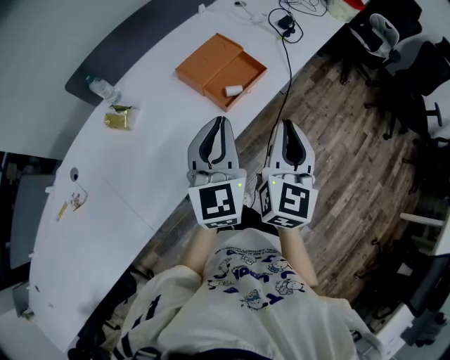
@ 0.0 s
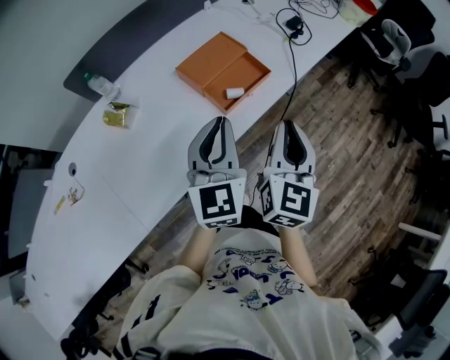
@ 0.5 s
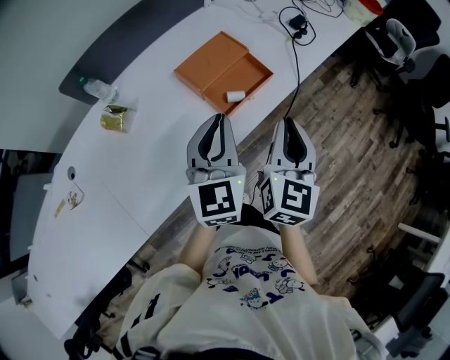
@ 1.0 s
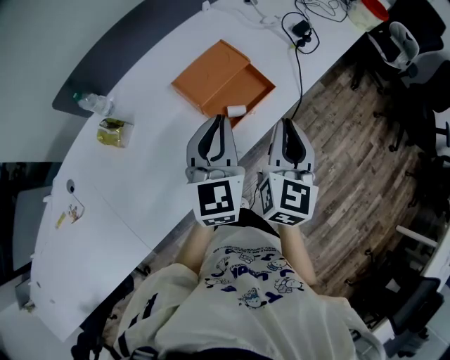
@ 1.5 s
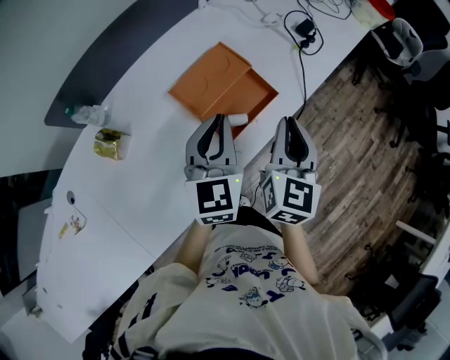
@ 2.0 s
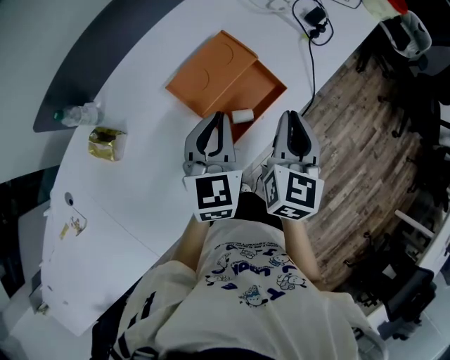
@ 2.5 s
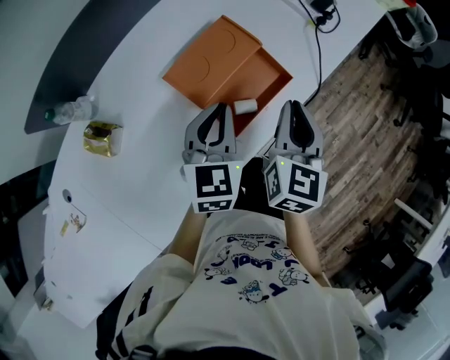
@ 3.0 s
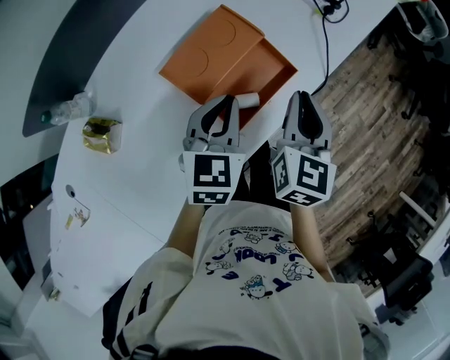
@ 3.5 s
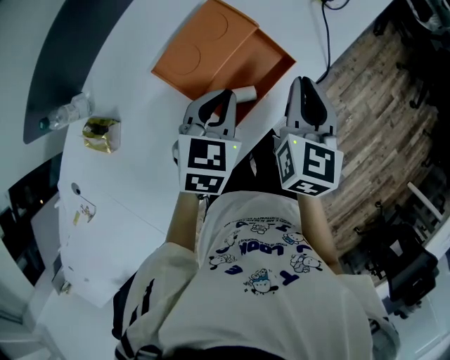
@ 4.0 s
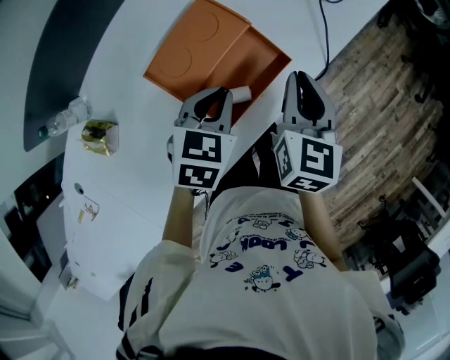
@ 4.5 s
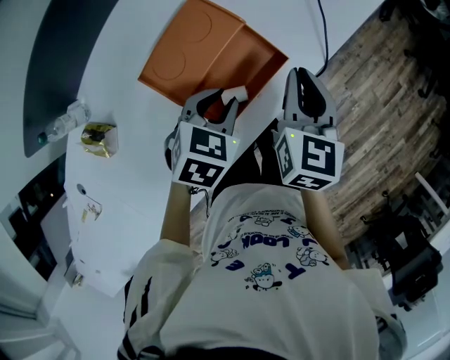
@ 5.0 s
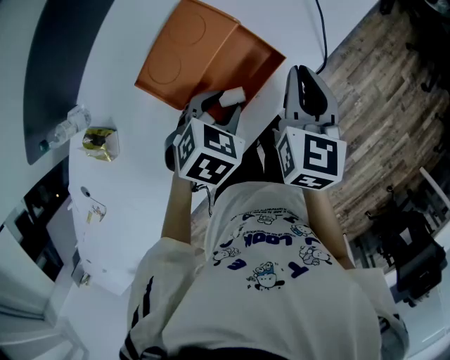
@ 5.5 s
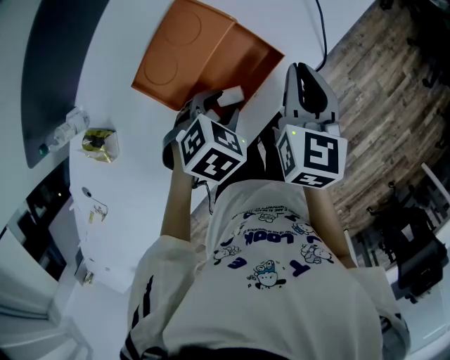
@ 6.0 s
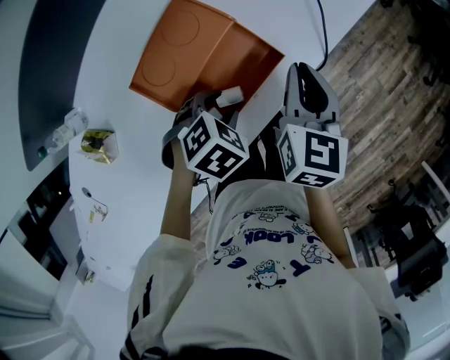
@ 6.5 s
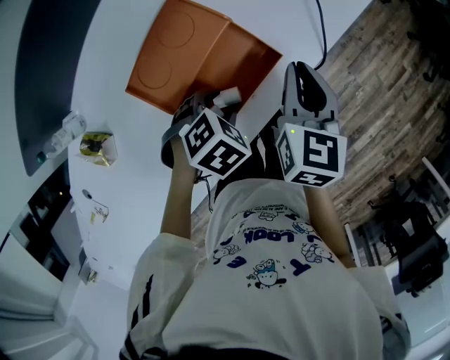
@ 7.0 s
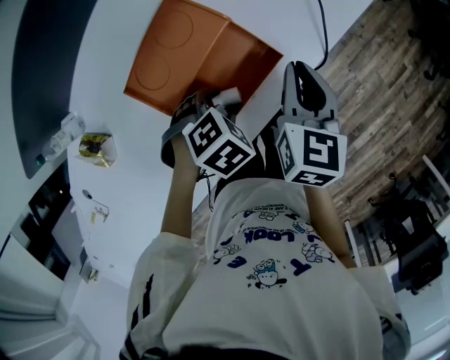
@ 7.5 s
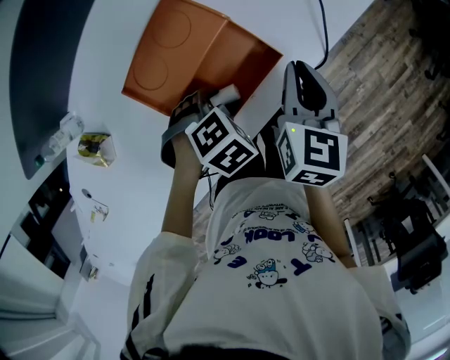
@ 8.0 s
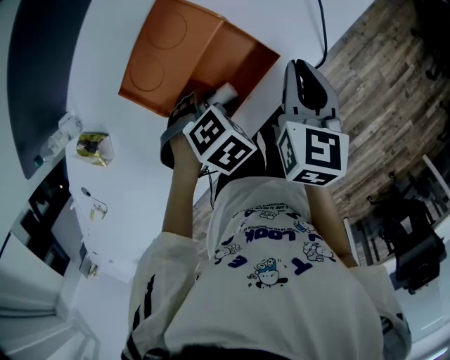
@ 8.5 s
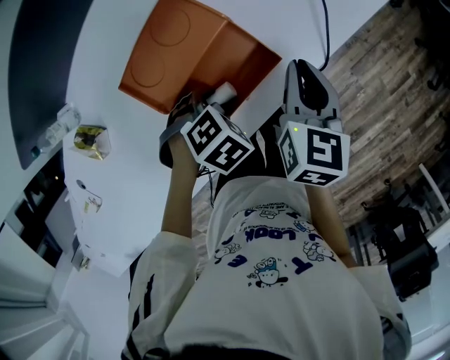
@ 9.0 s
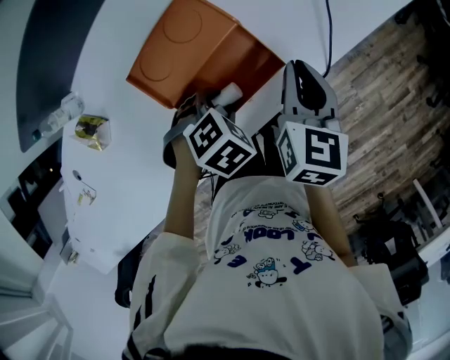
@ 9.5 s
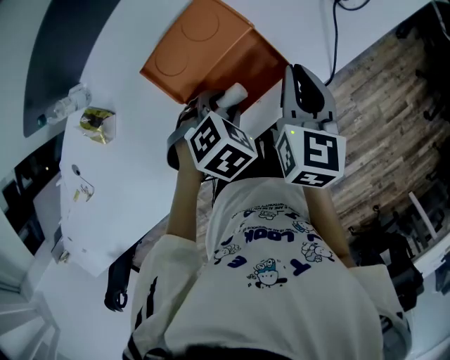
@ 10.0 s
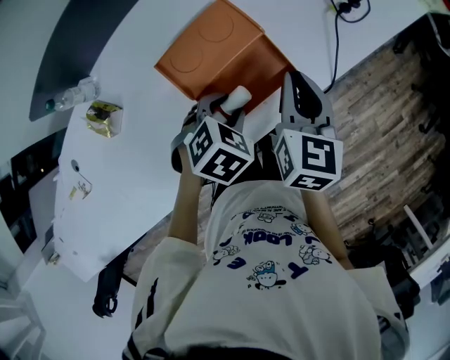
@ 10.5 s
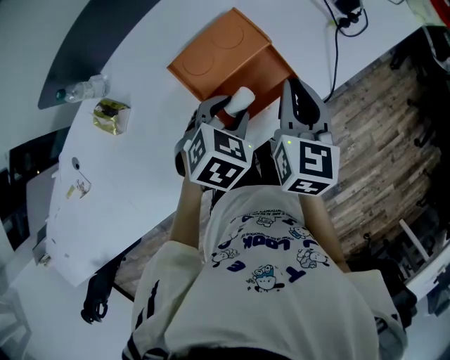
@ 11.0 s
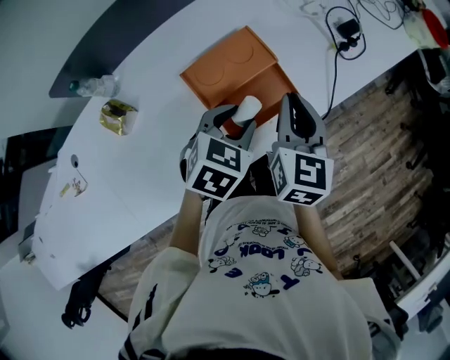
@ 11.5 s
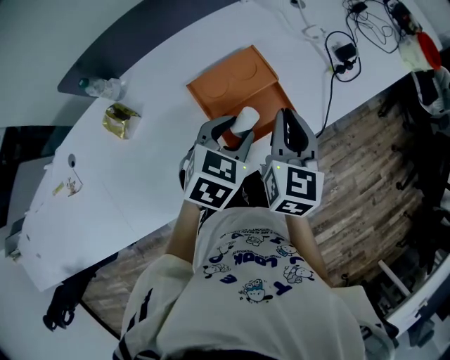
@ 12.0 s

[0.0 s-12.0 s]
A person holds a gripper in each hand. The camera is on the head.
0.0 to 2.0 s: The grippers both shift forward by roughly 20 cm.
2.0 to 4.0 s: Both grippers travel together downward and forward, about 15 cm. The left gripper swivels roughly 30 degrees.
4.0 to 6.0 s: The right gripper moves some 5 cm. Meanwhile the left gripper goes about 10 cm downward, turns by roughly 40 degrees, and opens its fingers.
6.0 to 10.0 s: The grippers stay close to where they were, moving slightly.
10.0 to 12.0 s: The grippers both shift upward by some 15 cm. The left gripper angles its fingers upward, by approximately 30 degrees.

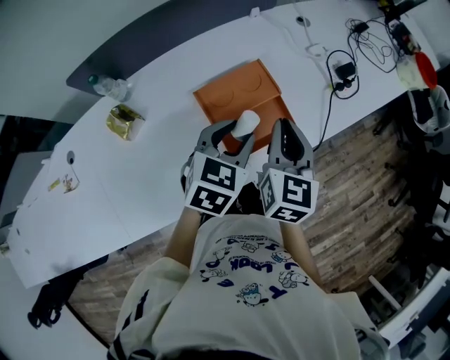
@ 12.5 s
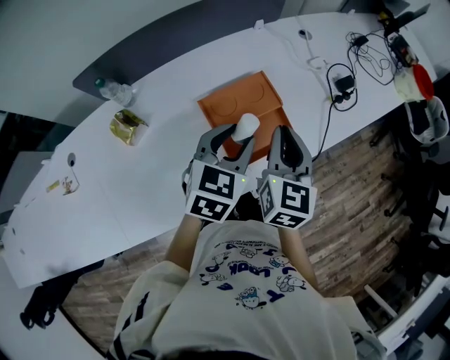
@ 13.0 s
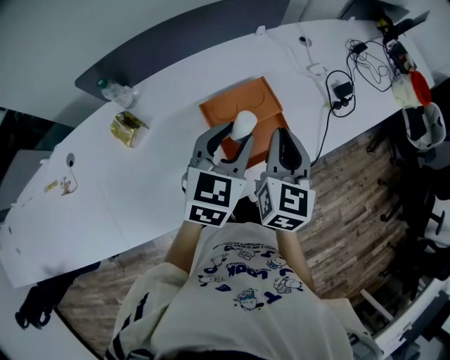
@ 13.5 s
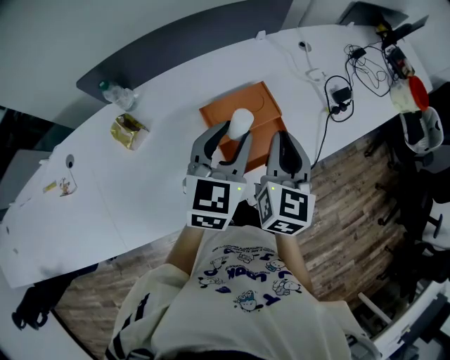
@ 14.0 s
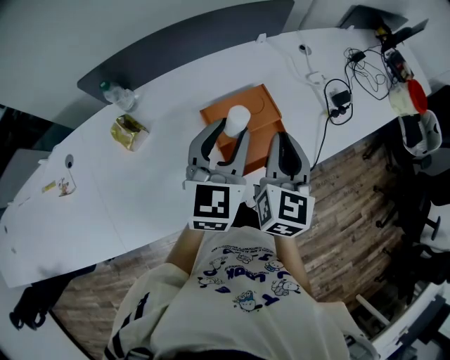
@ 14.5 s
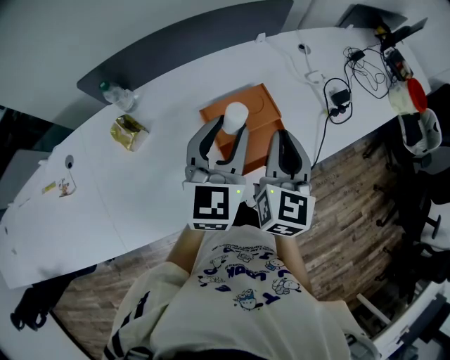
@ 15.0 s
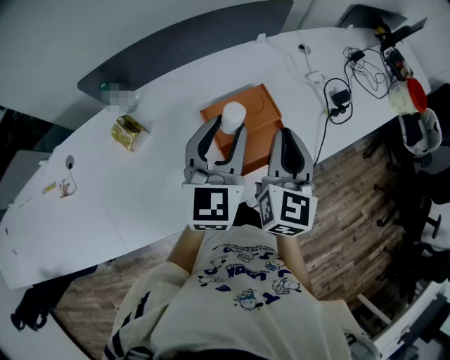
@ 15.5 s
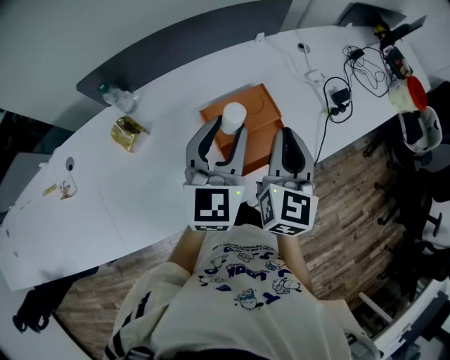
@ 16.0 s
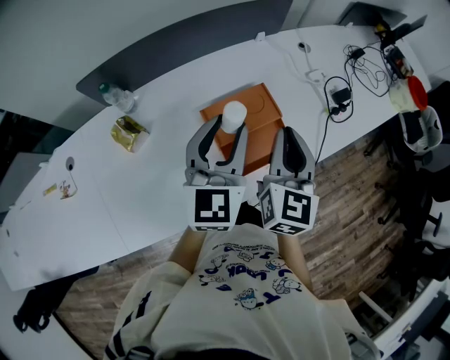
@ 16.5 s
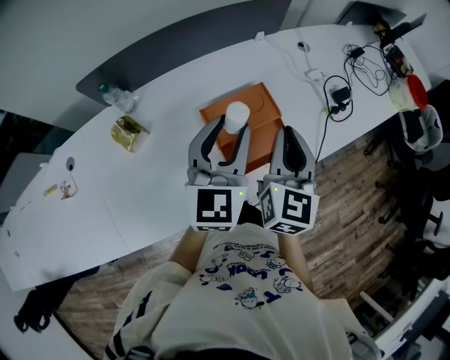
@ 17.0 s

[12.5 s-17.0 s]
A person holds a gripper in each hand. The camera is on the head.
12.5 to 14.5 s: The right gripper shifts by roughly 5 cm; the left gripper moves upward and to the left, roughly 10 cm, and rotates about 30 degrees.
14.5 to 17.0 s: The grippers make only small movements.

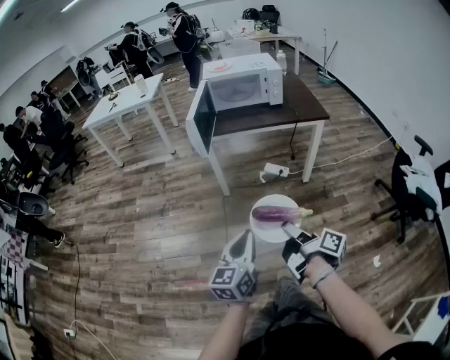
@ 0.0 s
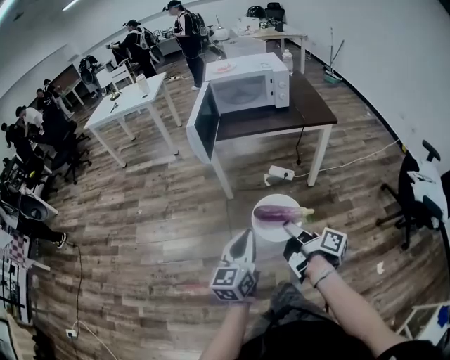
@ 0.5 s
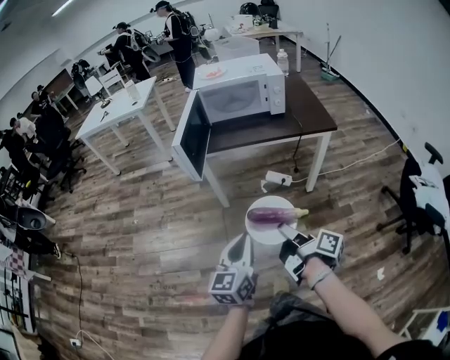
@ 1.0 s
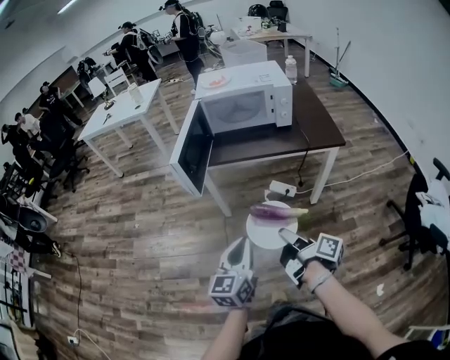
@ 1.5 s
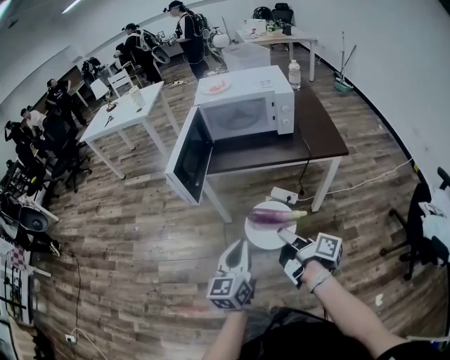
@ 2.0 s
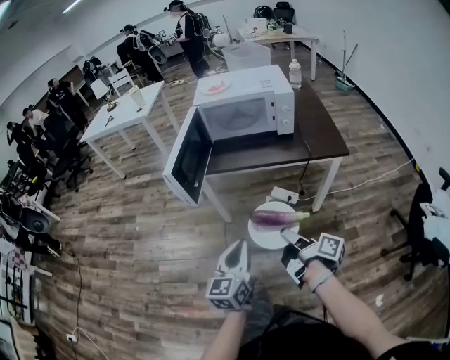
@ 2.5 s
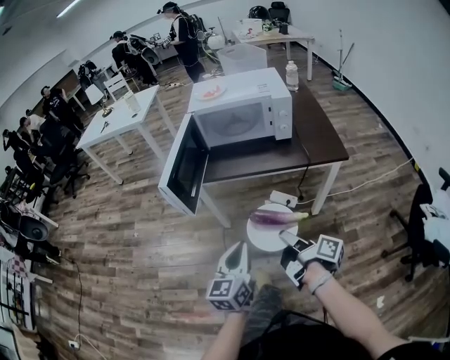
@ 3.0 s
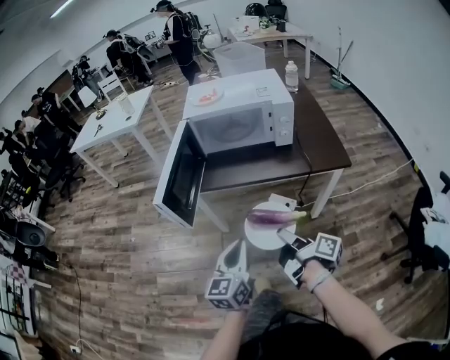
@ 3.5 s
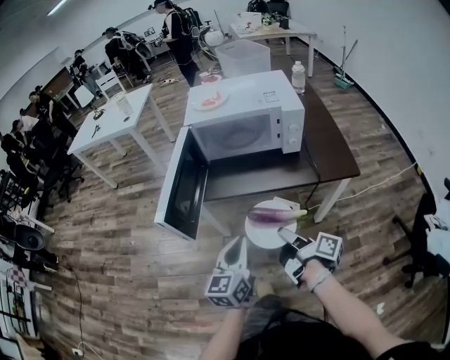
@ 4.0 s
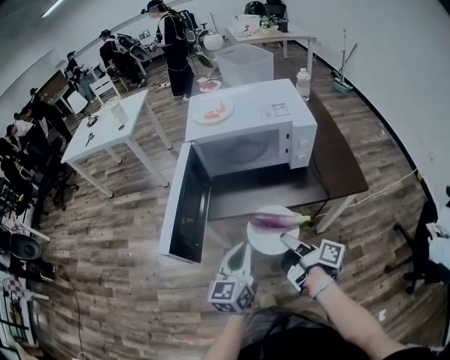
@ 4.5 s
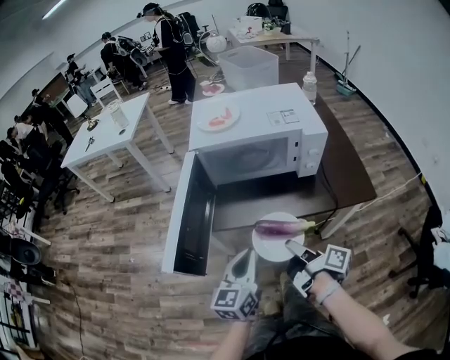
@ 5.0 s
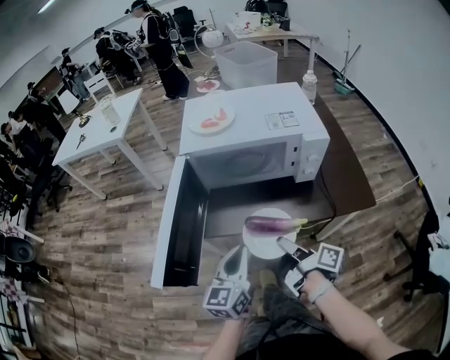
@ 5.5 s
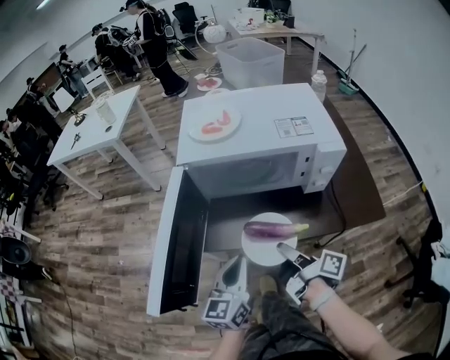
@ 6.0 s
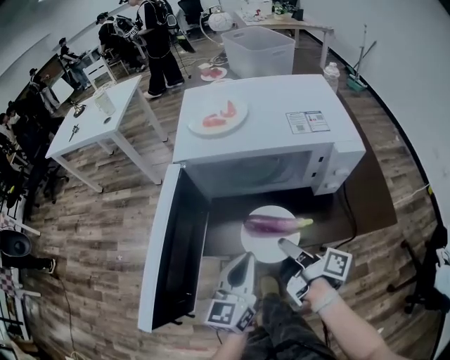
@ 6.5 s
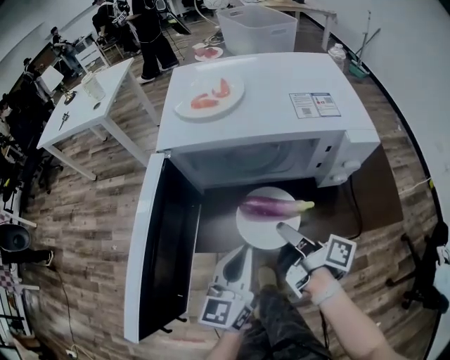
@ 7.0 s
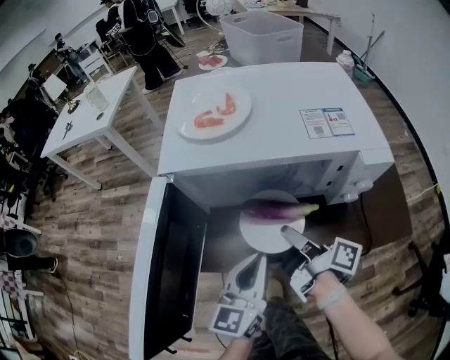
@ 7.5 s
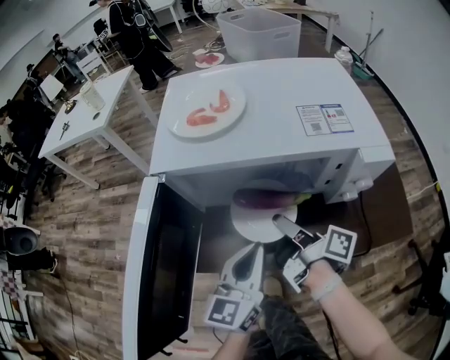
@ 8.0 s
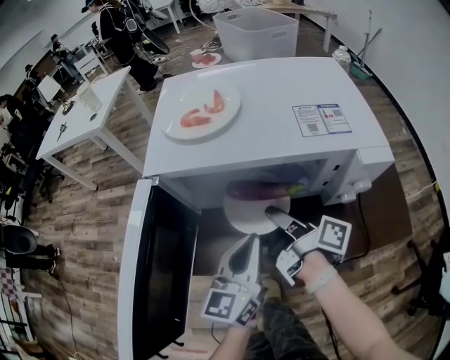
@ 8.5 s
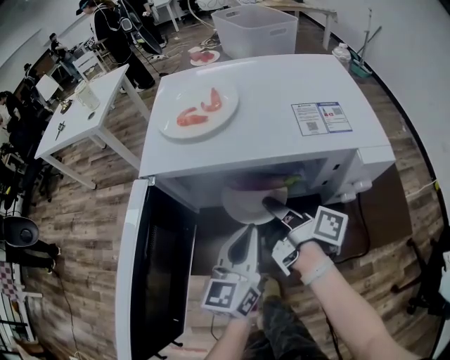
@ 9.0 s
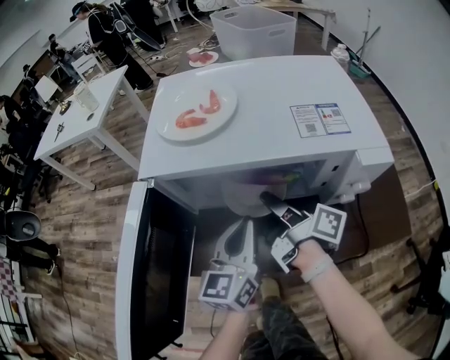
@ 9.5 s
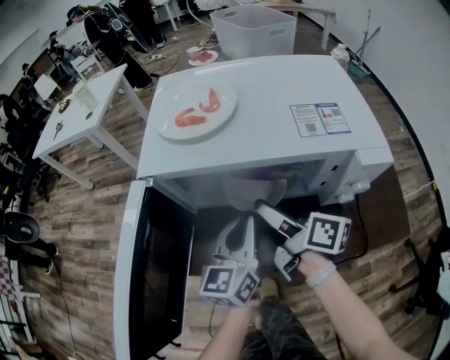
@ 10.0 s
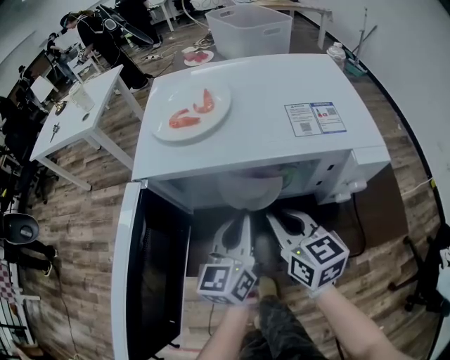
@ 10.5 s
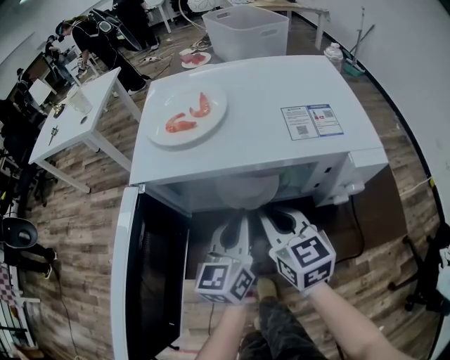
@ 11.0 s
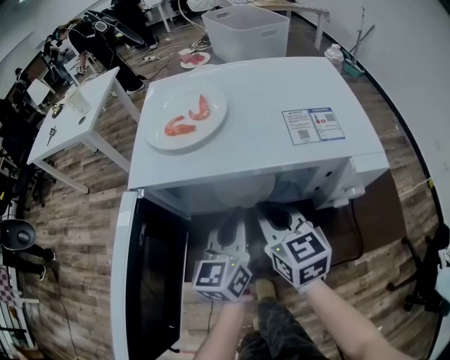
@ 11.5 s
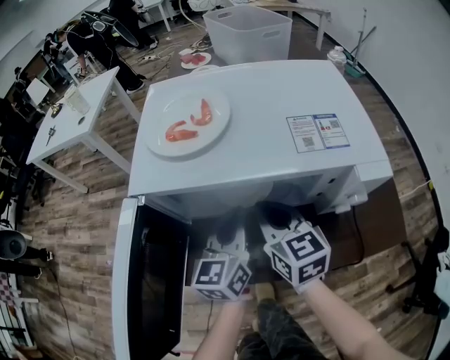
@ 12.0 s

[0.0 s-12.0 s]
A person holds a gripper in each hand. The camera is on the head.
0.0 to 2.0 s: Both grippers travel together forward, roughly 25 cm.
2.0 to 4.0 s: The grippers both shift forward by some 15 cm.
4.0 to 6.0 s: Both grippers move forward, about 20 cm.
6.0 to 8.0 s: The right gripper shifts roughly 15 cm forward. Meanwhile the left gripper is displaced forward and to the right by approximately 10 cm.
8.0 to 10.0 s: The right gripper swivels approximately 20 degrees, and opens. The left gripper heads forward, covering about 10 cm.
10.0 to 12.0 s: The right gripper rotates around the line of its fingers by about 50 degrees, counterclockwise from behind, and closes.
